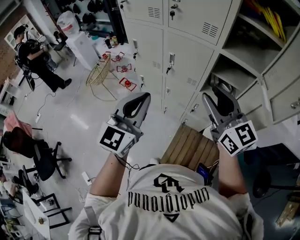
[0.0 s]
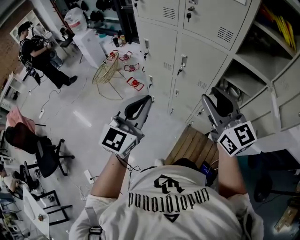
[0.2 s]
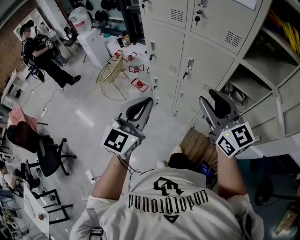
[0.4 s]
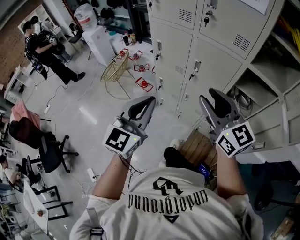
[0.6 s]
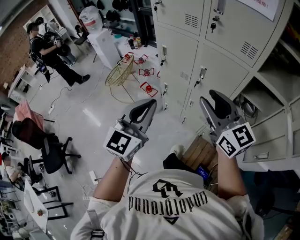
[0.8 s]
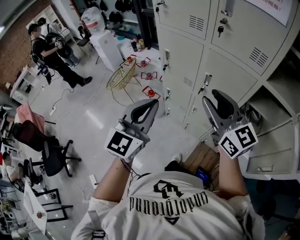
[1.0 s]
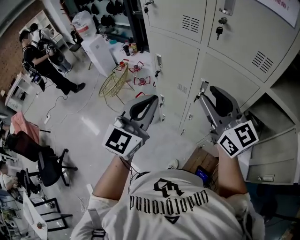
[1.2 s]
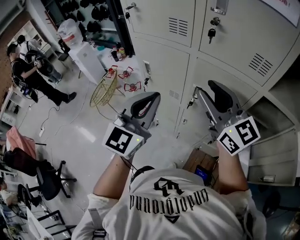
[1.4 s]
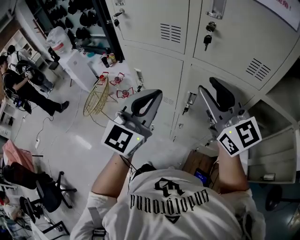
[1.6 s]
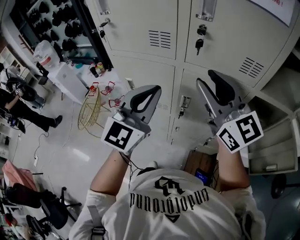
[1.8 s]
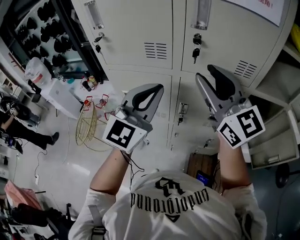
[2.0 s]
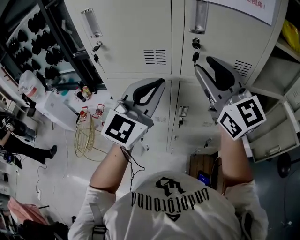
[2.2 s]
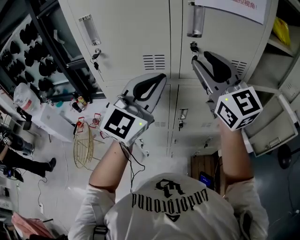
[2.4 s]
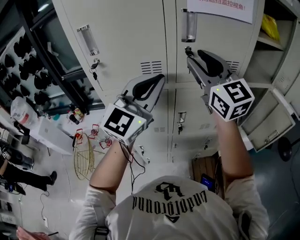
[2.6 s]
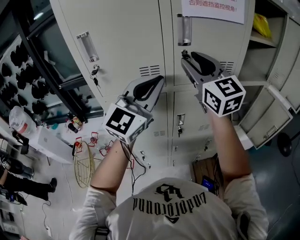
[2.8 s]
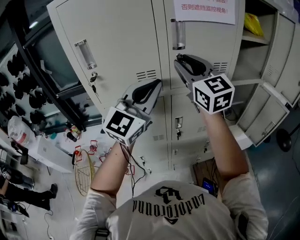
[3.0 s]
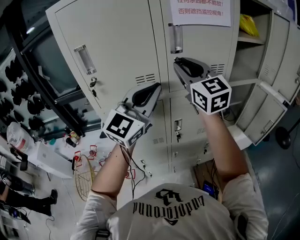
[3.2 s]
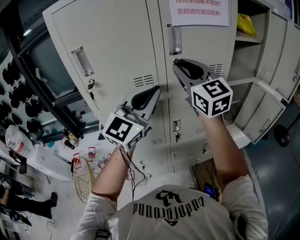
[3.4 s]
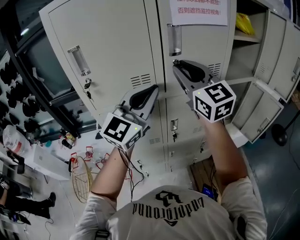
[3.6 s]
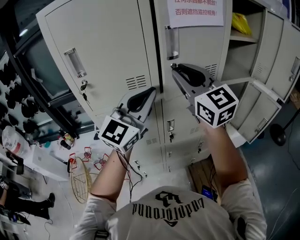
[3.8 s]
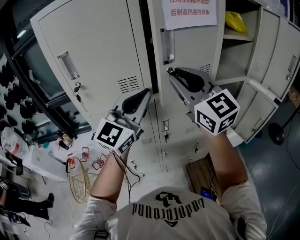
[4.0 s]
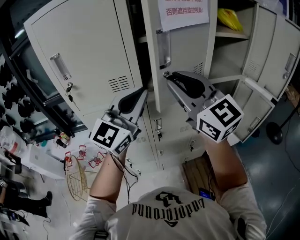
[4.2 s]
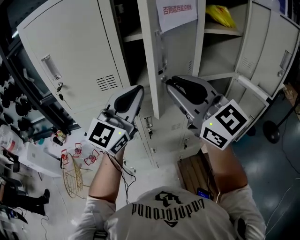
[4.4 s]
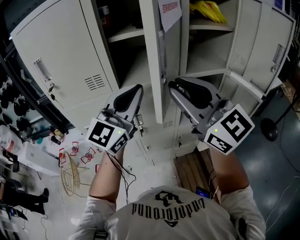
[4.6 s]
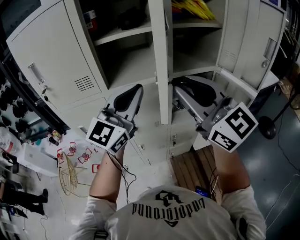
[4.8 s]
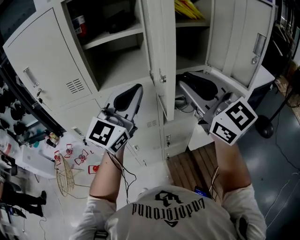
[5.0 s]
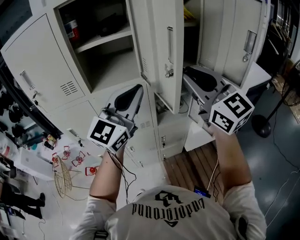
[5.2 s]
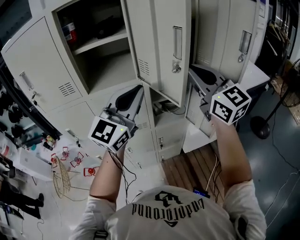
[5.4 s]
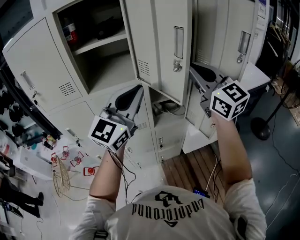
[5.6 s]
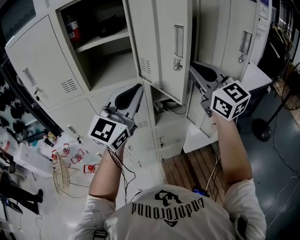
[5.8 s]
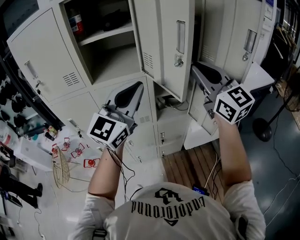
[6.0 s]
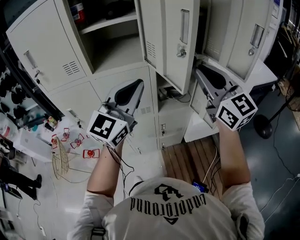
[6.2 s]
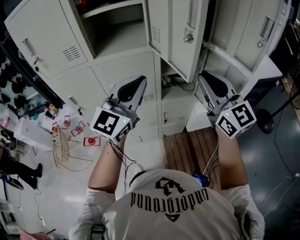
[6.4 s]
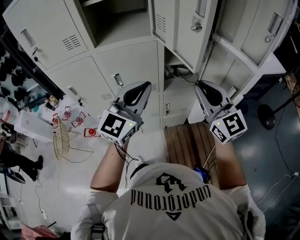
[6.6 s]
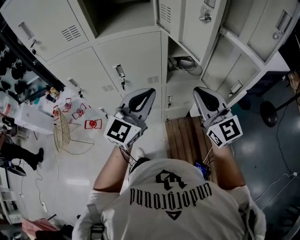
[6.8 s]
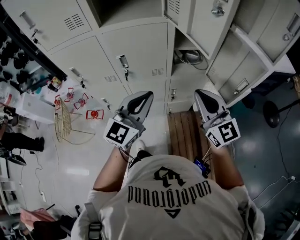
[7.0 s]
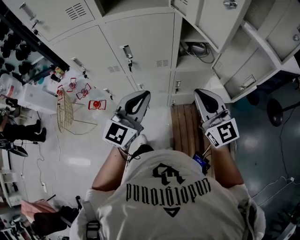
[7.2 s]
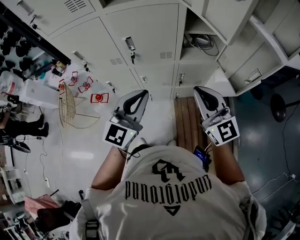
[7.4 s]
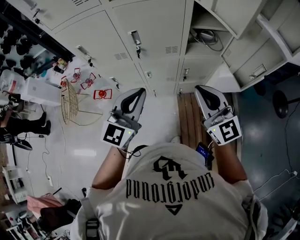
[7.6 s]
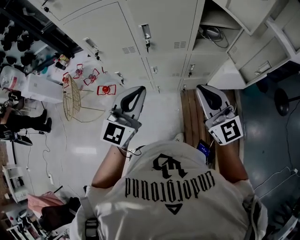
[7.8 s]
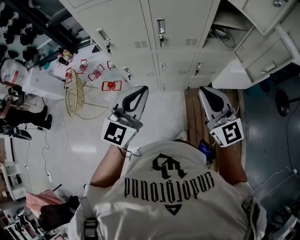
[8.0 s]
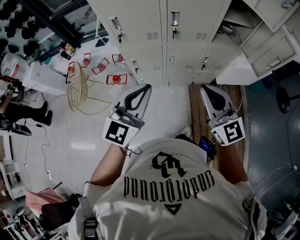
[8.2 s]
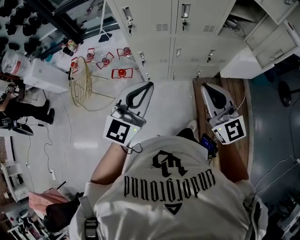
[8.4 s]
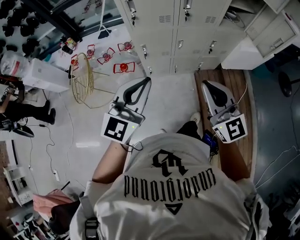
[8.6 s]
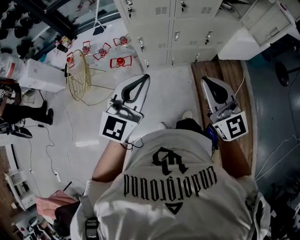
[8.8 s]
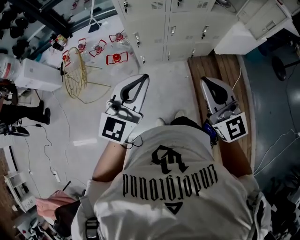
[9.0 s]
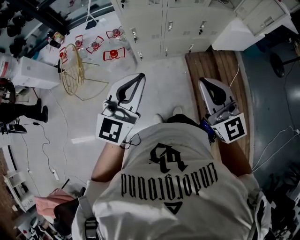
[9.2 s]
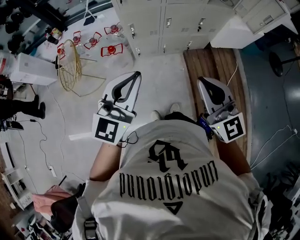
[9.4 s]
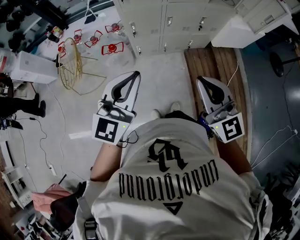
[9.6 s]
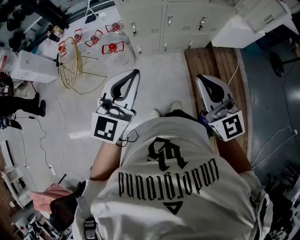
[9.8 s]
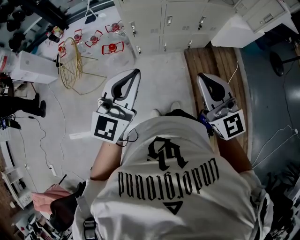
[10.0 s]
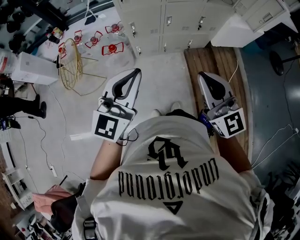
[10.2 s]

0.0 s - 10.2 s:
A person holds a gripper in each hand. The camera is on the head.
0.0 s - 1.4 s: The two grippers go about 25 cm forward.
1.4 s - 3.0 s: Both grippers travel together upward, roughly 15 cm. The right gripper rotates some 50 degrees; the left gripper changes its angle by approximately 50 degrees.
3.0 s - 4.4 s: The right gripper is displaced backward and to the right by about 15 cm; the left gripper is displaced to the right by about 10 cm.
4.4 s - 5.8 s: Both grippers move to the right, approximately 25 cm.
5.8 s - 7.2 s: The two grippers go some 25 cm downward. The left gripper changes its angle by about 20 degrees.
7.2 s - 8.8 s: Both grippers are carried to the left and backward, some 40 cm.
8.8 s - 10.2 s: The grippers both shift backward by some 5 cm.

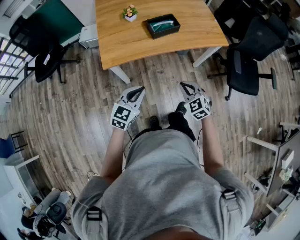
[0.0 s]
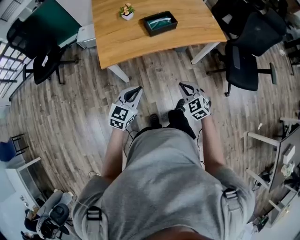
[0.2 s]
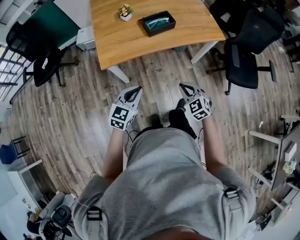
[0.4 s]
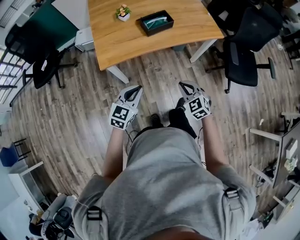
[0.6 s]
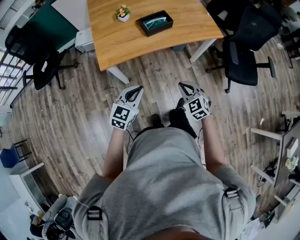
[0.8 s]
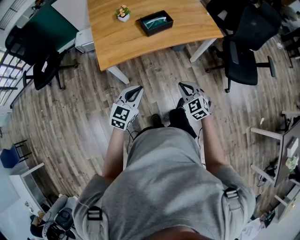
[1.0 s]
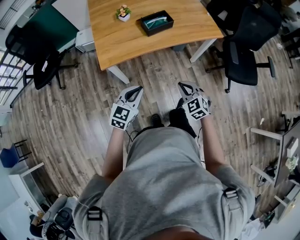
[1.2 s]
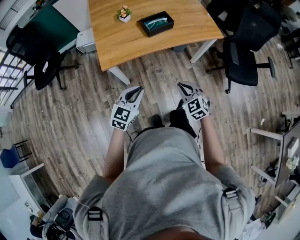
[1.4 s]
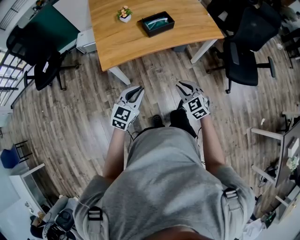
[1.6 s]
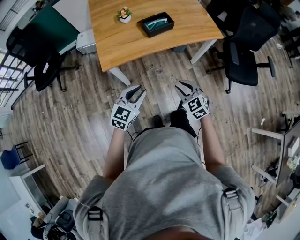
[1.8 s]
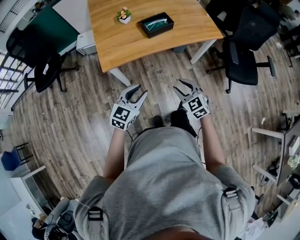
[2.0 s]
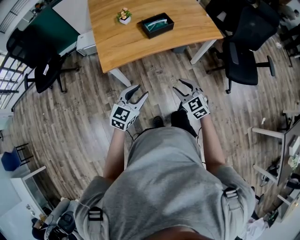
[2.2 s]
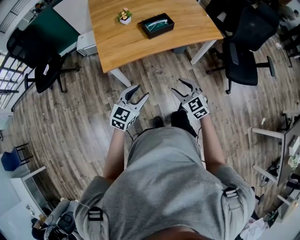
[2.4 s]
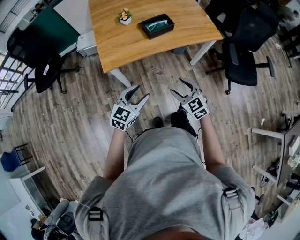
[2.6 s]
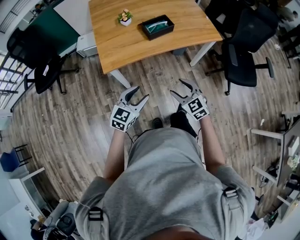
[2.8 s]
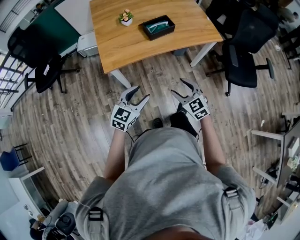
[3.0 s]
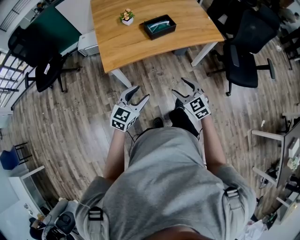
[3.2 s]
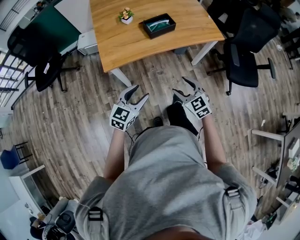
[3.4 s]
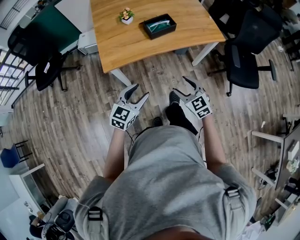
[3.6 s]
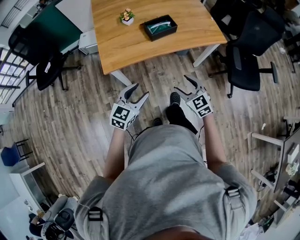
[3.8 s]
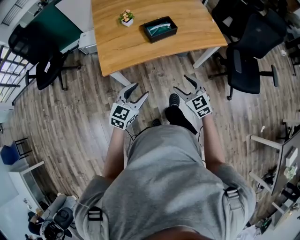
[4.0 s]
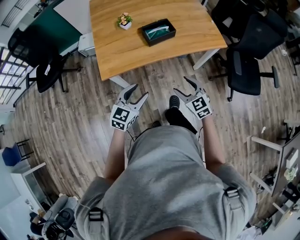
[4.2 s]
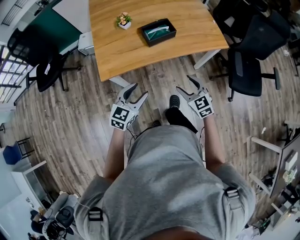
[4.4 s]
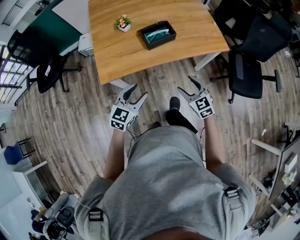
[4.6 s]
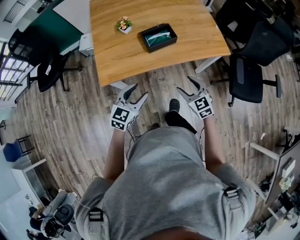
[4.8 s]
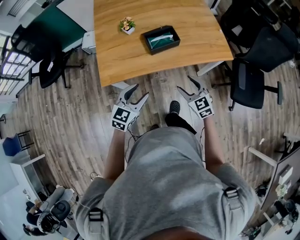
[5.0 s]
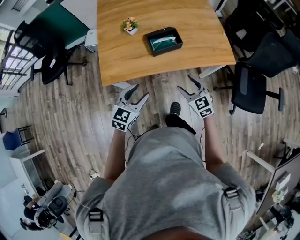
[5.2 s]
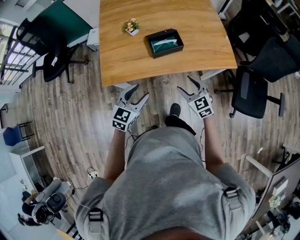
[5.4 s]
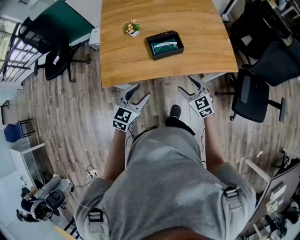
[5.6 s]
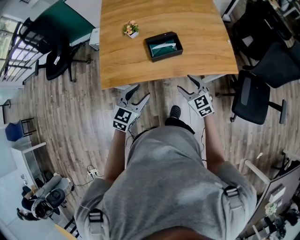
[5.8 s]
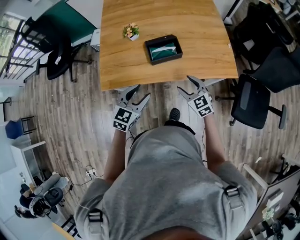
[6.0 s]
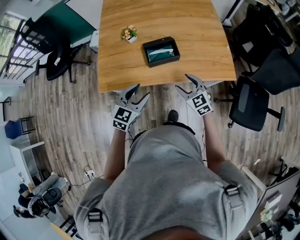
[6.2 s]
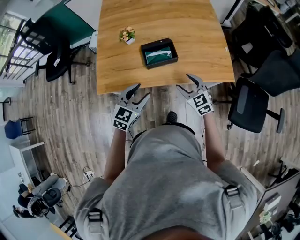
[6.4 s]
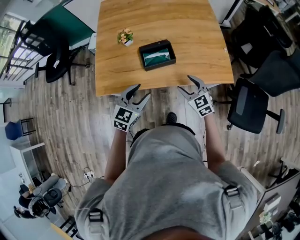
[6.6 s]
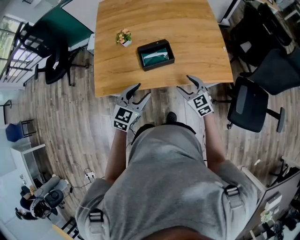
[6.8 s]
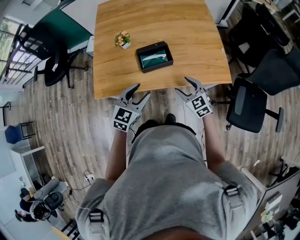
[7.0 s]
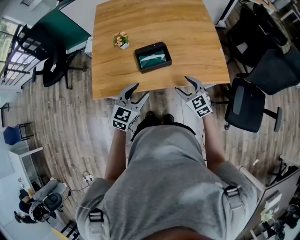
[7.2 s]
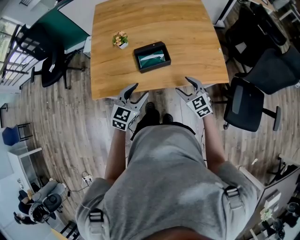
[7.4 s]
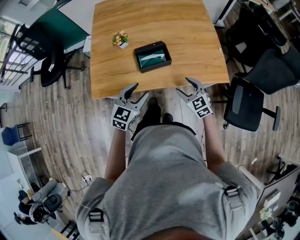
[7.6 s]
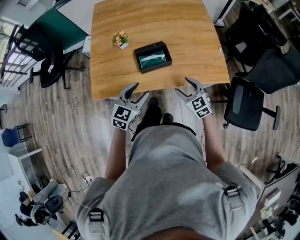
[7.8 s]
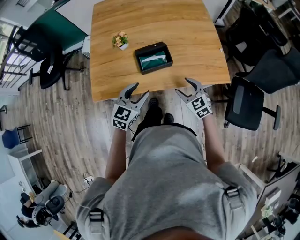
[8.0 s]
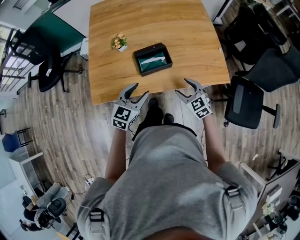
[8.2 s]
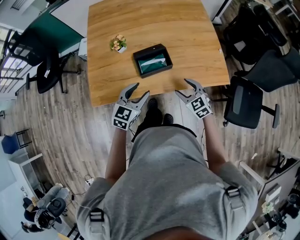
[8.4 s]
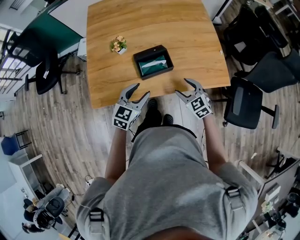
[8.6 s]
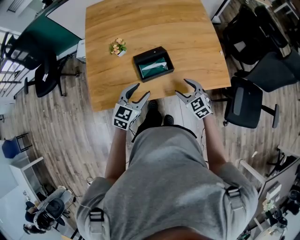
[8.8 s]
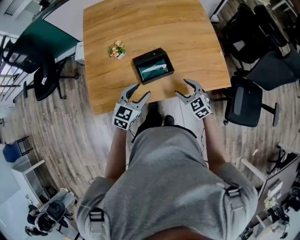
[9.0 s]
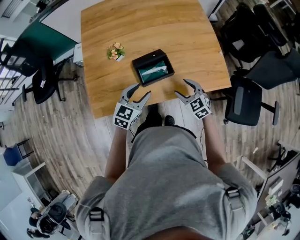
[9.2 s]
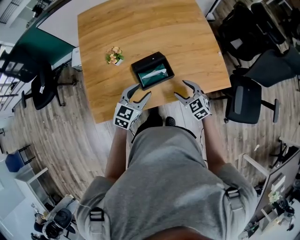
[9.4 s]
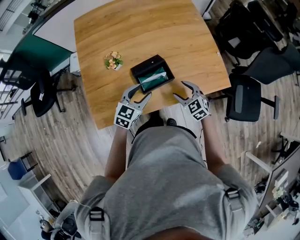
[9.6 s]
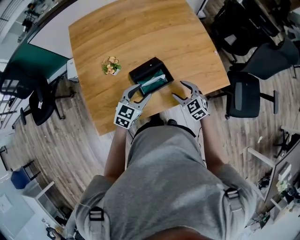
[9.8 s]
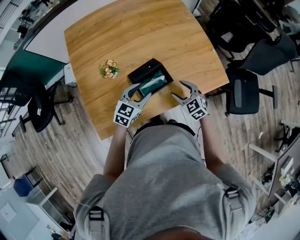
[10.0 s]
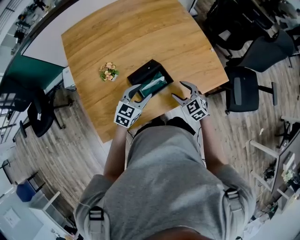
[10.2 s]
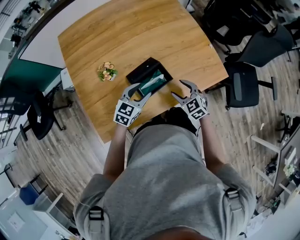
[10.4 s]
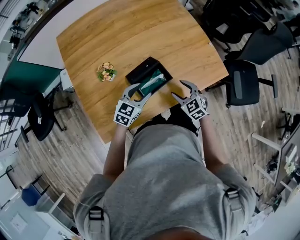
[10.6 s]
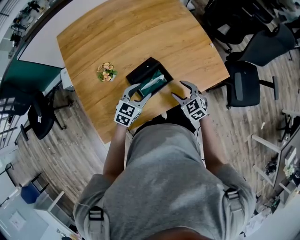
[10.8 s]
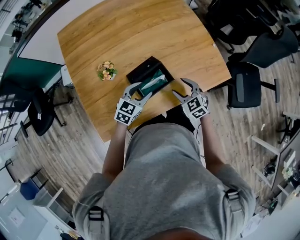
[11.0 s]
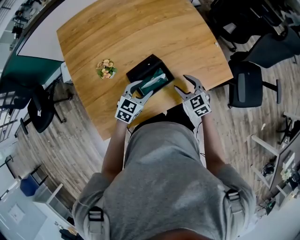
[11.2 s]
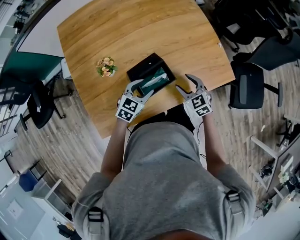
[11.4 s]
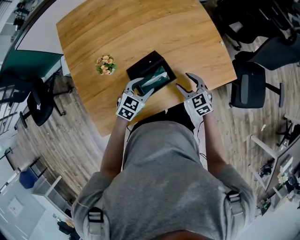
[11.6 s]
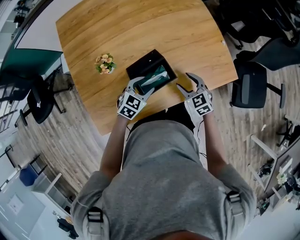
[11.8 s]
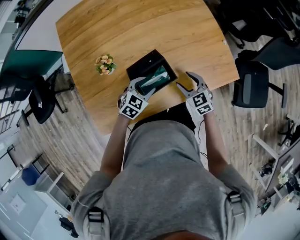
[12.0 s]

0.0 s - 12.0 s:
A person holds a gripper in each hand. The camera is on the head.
0.0 s - 1.6 s: The grippers stay close to where they were, moving slightly.
1.6 s - 3.0 s: The right gripper opens; the left gripper opens its fingers.
3.0 s - 4.4 s: The left gripper is displaced forward by some 10 cm; the right gripper shifts approximately 15 cm forward and to the right.
4.4 s - 6.0 s: The right gripper goes roughly 20 cm forward, while the left gripper shifts roughly 15 cm forward and to the right.
6.0 s - 7.6 s: The right gripper is displaced to the right by approximately 5 cm, while the left gripper shifts some 5 cm to the right and forward.
7.6 s - 9.0 s: Both grippers move forward, some 10 cm.
9.0 s - 10.4 s: The right gripper moves about 5 cm. Meanwhile the left gripper heads forward and downward, covering approximately 10 cm.
10.4 s - 12.0 s: The right gripper heads forward, covering roughly 5 cm; the left gripper travels downward by approximately 10 cm.

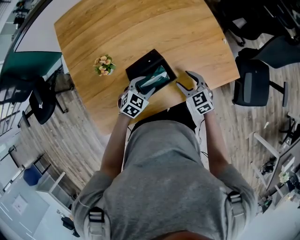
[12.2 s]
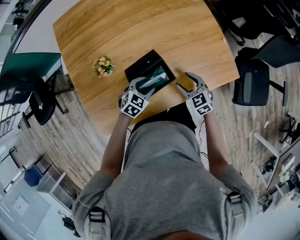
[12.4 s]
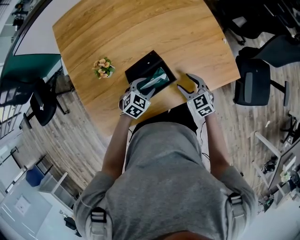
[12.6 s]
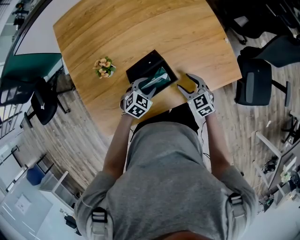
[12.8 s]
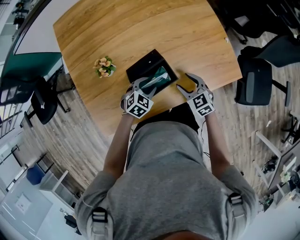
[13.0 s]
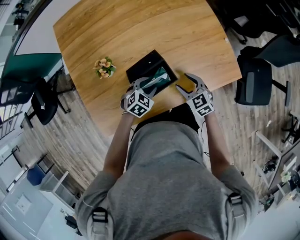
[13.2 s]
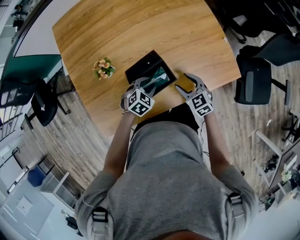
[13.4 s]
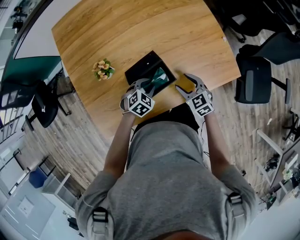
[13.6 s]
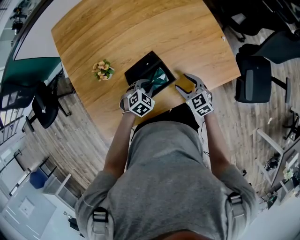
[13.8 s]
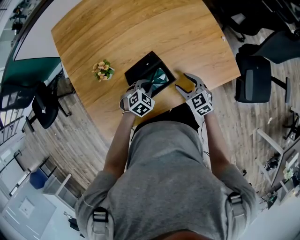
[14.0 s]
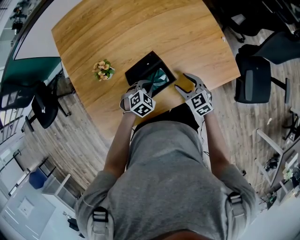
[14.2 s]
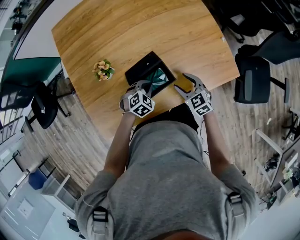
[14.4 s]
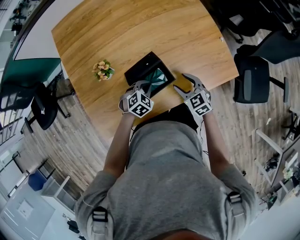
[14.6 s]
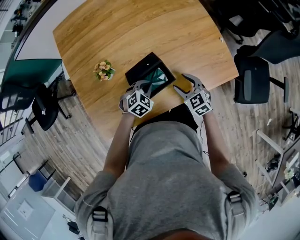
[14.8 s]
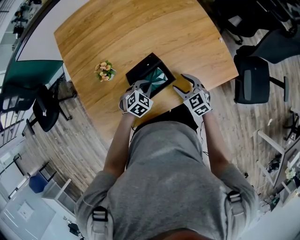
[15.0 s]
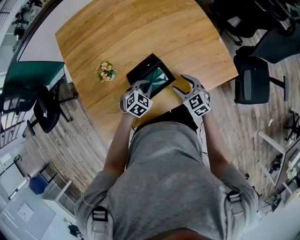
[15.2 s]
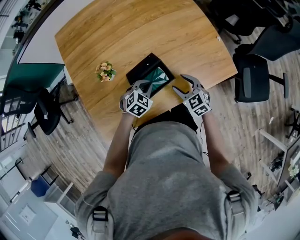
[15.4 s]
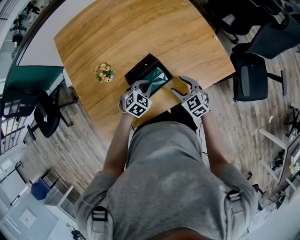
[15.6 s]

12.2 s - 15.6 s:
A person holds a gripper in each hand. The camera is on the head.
12.2 s - 13.8 s: The left gripper closes.
13.8 s - 15.6 s: The grippers make only small movements.
